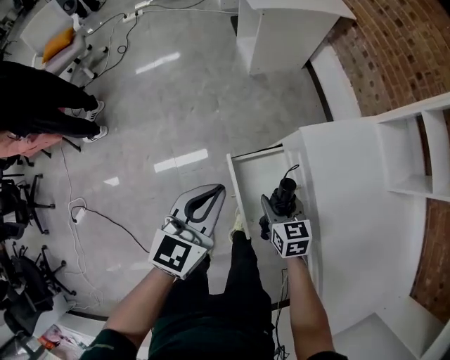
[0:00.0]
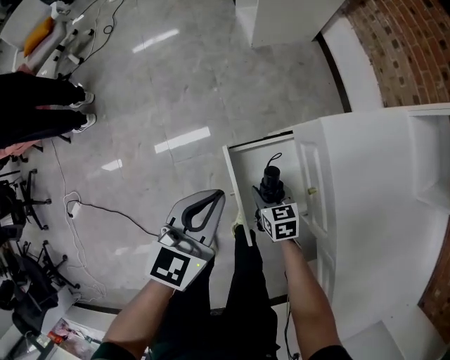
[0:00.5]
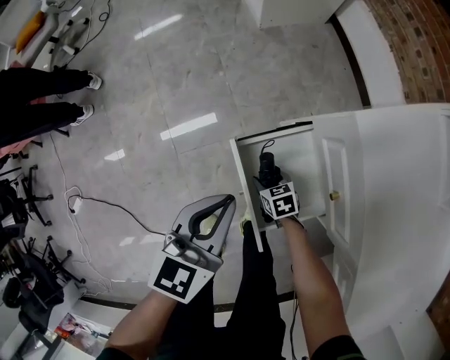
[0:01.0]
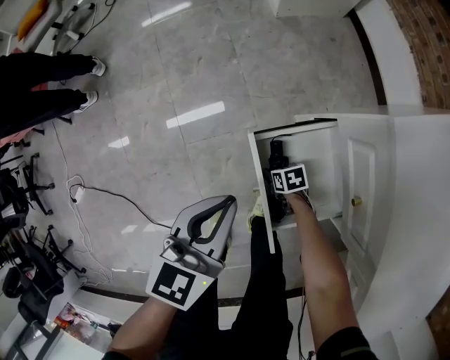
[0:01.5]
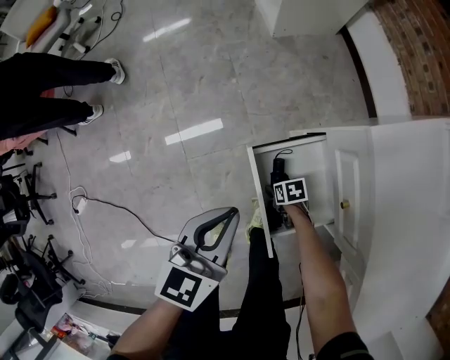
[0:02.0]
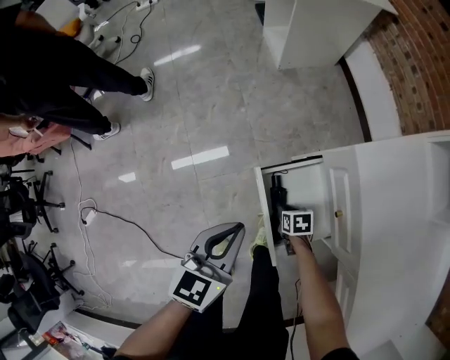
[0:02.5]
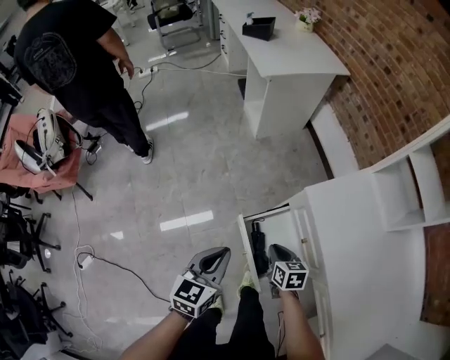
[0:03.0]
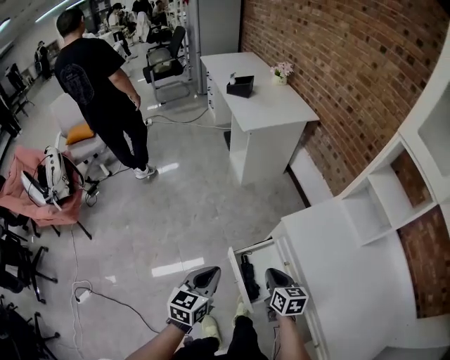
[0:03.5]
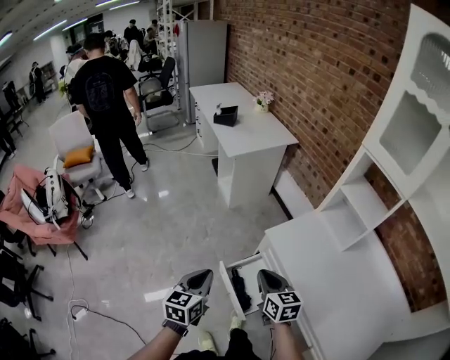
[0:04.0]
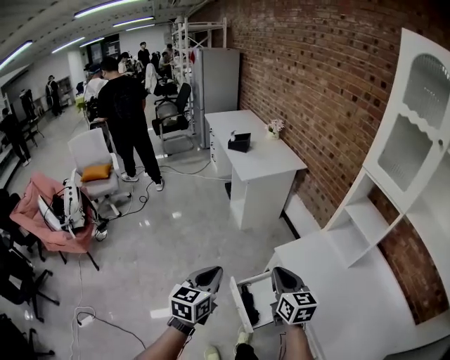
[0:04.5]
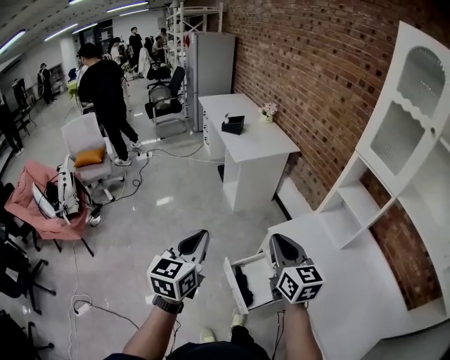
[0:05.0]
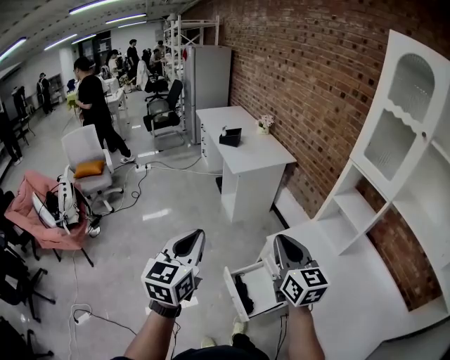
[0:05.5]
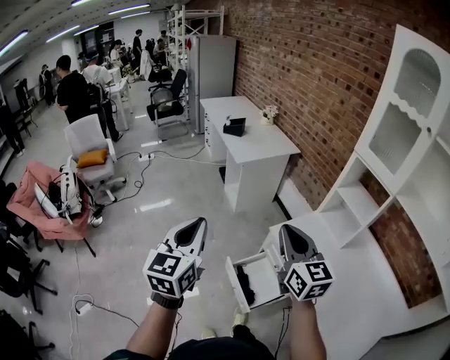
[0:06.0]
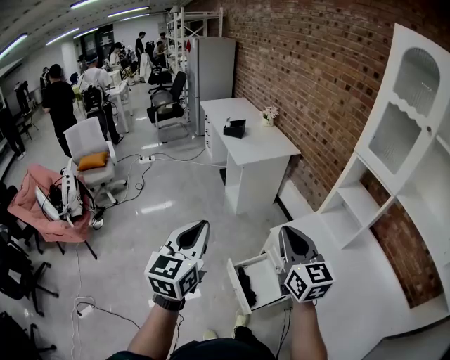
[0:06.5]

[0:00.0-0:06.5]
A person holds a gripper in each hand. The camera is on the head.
0.0 to 2.0 s: The left gripper travels downward by some 20 cm. Meanwhile the right gripper goes approximately 40 cm downward, and rotates approximately 50 degrees.
2.0 to 4.5 s: The right gripper heads upward, covering some 80 cm, points its fingers about 50 degrees further upward, and closes up. The left gripper shifts some 40 cm upward.
4.5 to 6.5 s: The two grippers go some 15 cm upward.

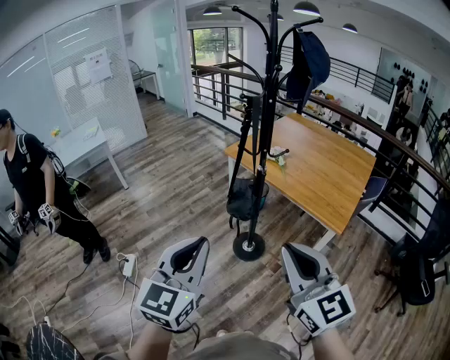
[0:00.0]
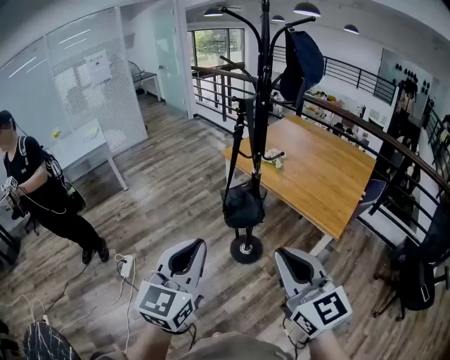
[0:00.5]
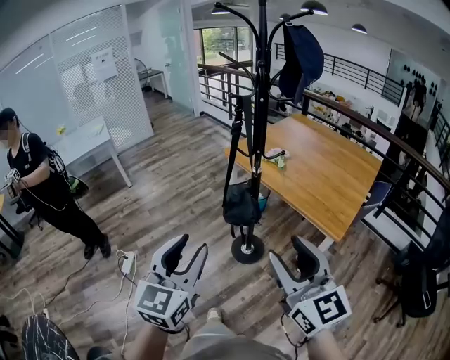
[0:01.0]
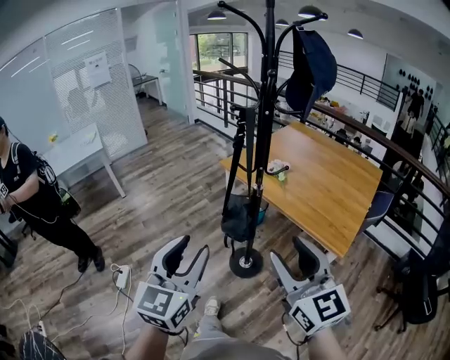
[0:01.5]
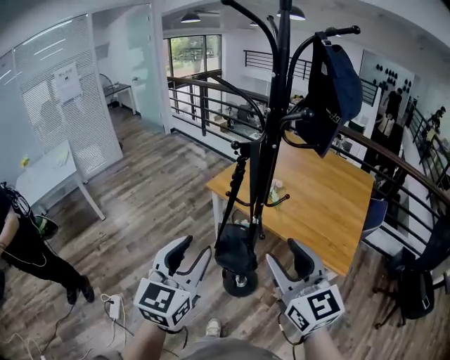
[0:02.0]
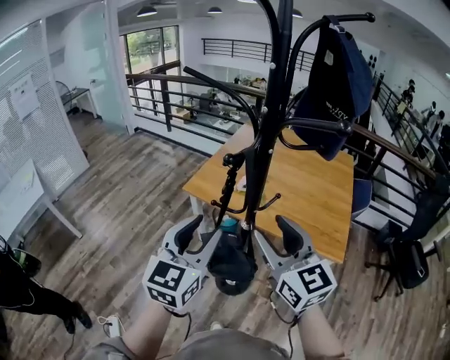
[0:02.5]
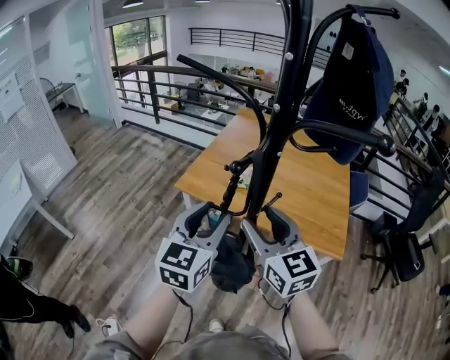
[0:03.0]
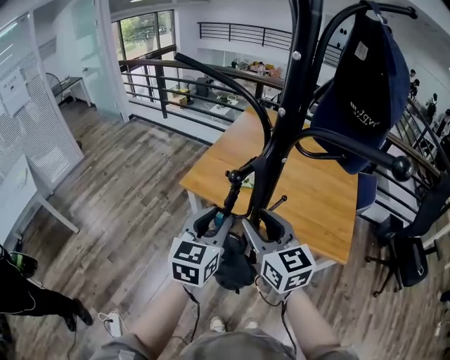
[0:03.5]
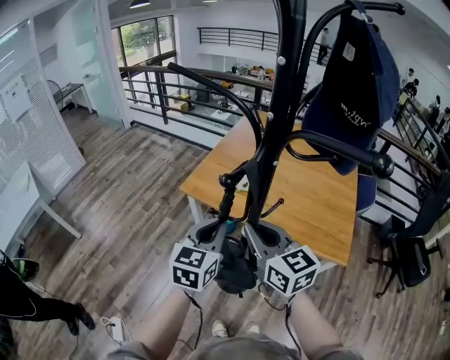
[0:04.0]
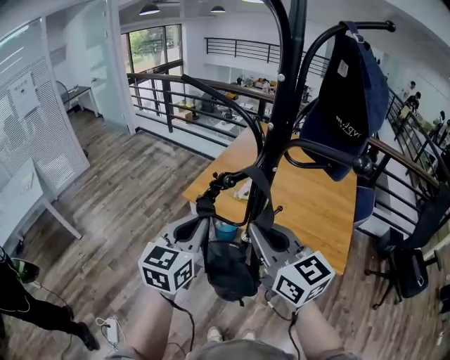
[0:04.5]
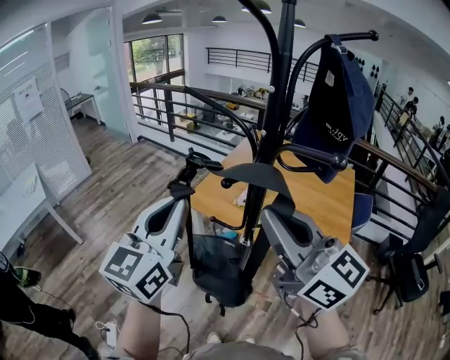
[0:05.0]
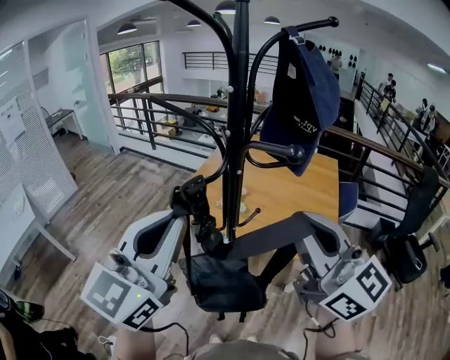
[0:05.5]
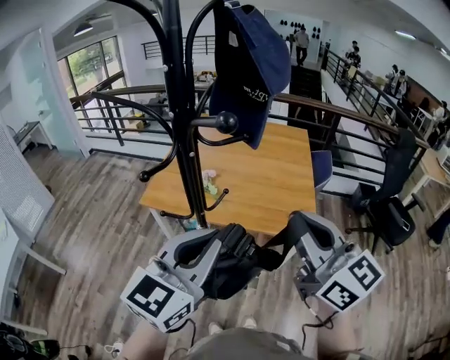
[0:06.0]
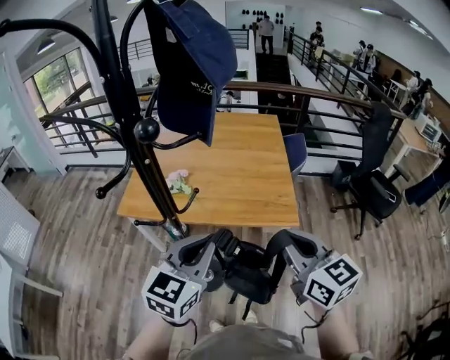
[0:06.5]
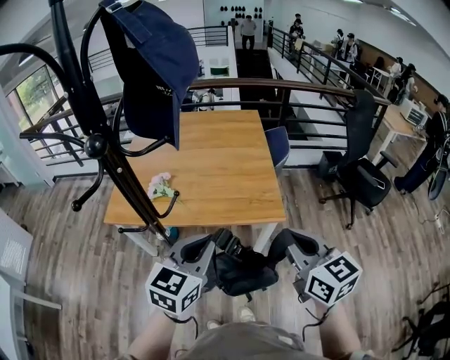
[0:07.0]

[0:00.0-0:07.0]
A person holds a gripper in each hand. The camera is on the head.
0.0 to 2.0 s: Both grippers move forward, approximately 25 cm. The right gripper opens up, while the left gripper opens its fingers.
2.0 to 3.5 s: Both grippers move forward, about 25 cm.
3.5 to 5.0 s: The left gripper goes approximately 20 cm upward, rotates roughly 20 degrees, and closes, while the right gripper moves upward and backward, some 25 cm, turns by about 30 degrees, and closes.
5.0 to 7.0 s: The right gripper ends up about 35 cm from where it was, and rotates roughly 50 degrees, while the left gripper changes place by about 35 cm, and changes its angle by approximately 50 degrees.

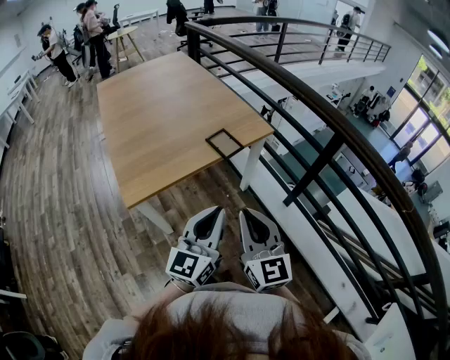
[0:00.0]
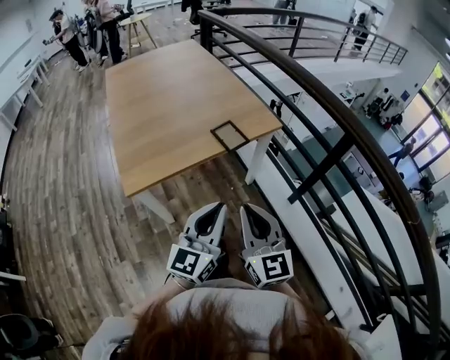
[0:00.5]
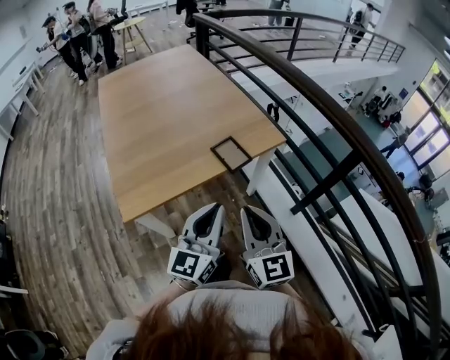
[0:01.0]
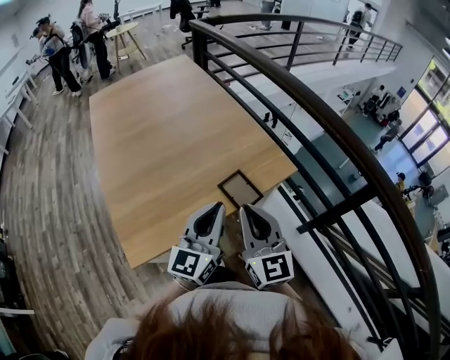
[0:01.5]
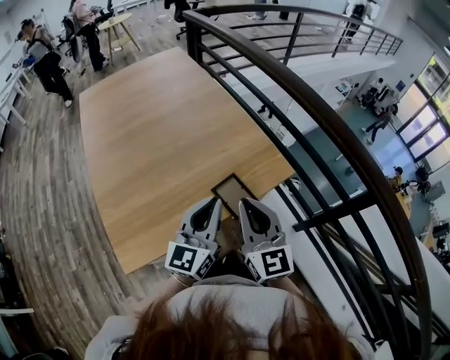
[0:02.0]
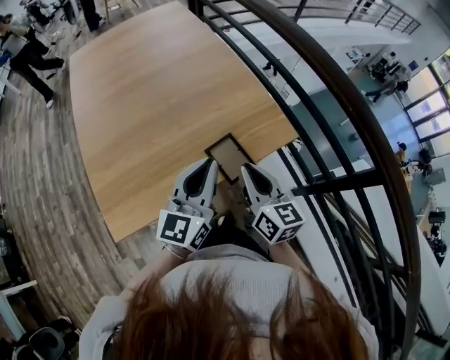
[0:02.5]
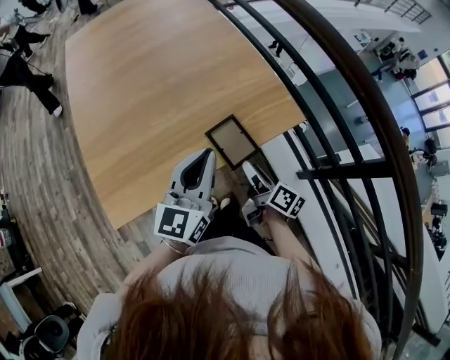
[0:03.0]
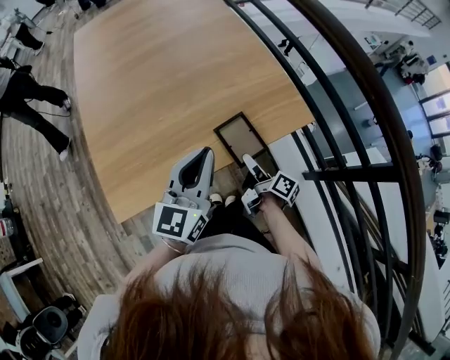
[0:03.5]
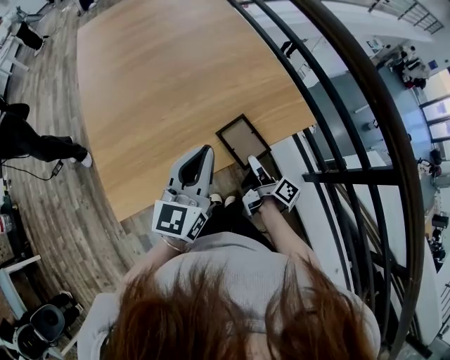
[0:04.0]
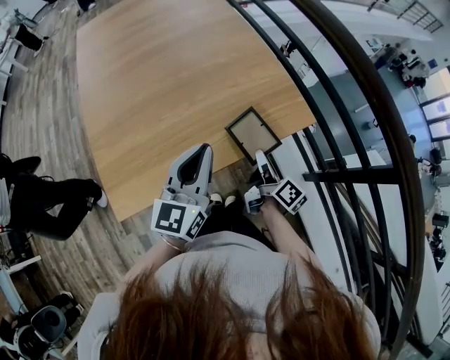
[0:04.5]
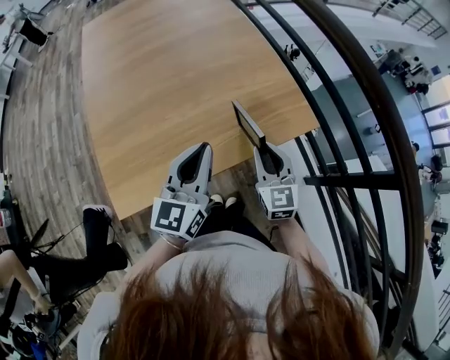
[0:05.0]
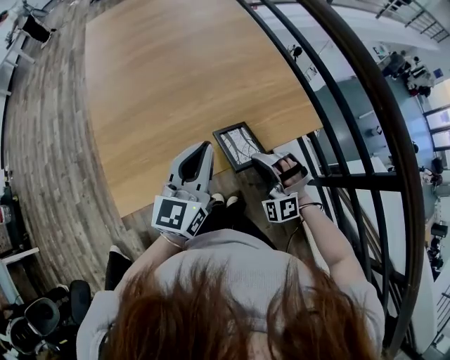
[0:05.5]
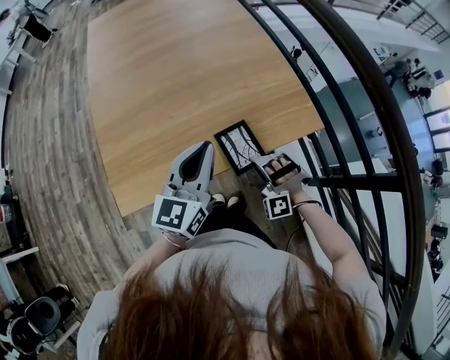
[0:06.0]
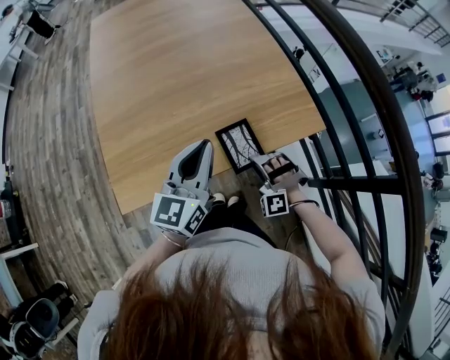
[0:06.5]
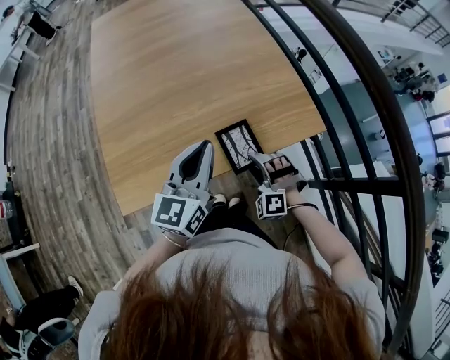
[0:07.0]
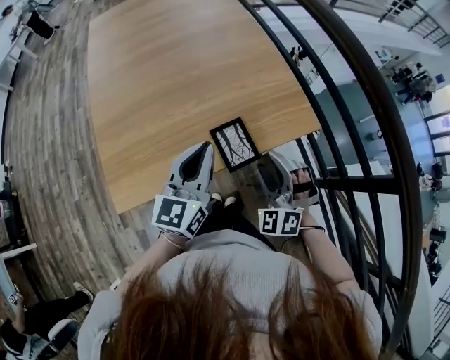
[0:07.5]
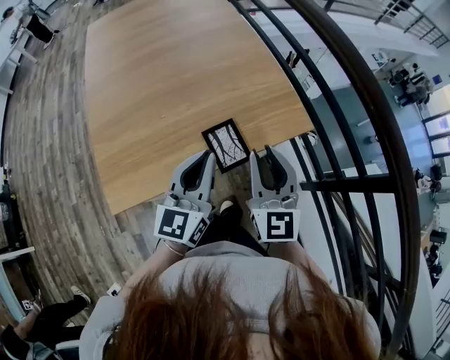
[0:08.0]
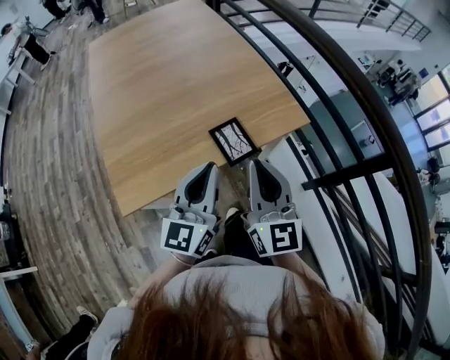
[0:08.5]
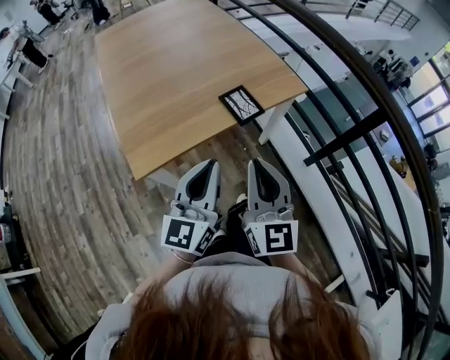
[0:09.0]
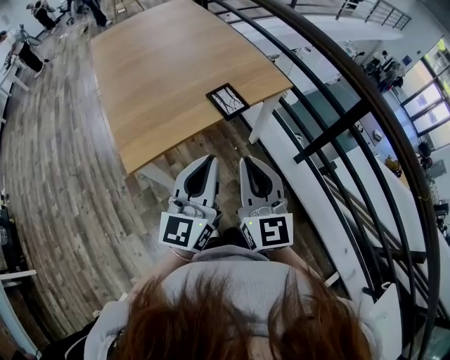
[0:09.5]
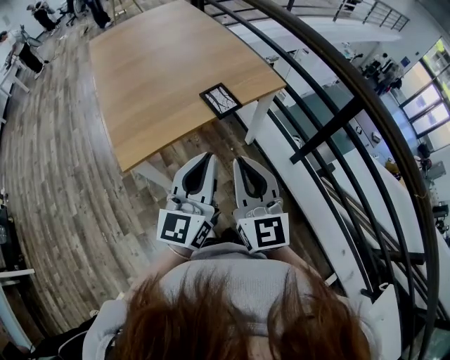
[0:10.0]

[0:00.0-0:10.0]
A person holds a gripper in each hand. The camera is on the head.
0.0 to 2.0 s: Both grippers travel together forward, some 35 cm.
2.0 to 4.0 s: The right gripper moves downward, approximately 25 cm, rotates around the line of its fingers by roughly 90 degrees, clockwise from behind, and opens, then closes once more. Meanwhile the left gripper moves some 5 cm.
4.0 to 6.0 s: The right gripper moves some 10 cm upward and comes back, and changes its angle by some 180 degrees.
6.0 to 8.0 s: The right gripper is displaced upward by some 25 cm, rotates around the line of its fingers by approximately 80 degrees, clockwise from behind, and opens, then closes once more.
8.0 to 10.0 s: The grippers both shift backward by about 30 cm. The right gripper closes up.

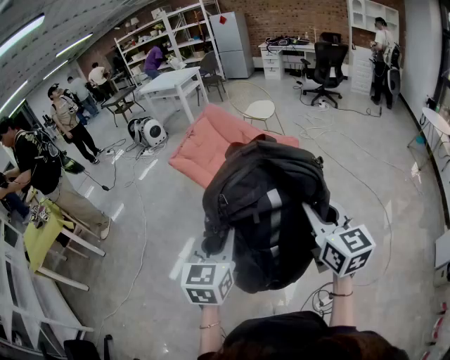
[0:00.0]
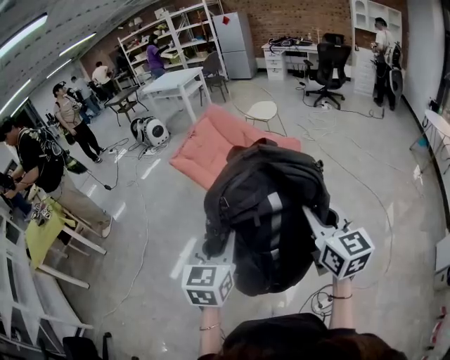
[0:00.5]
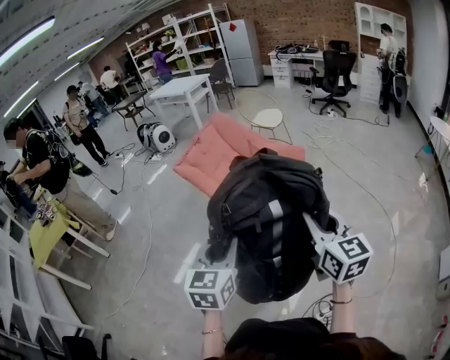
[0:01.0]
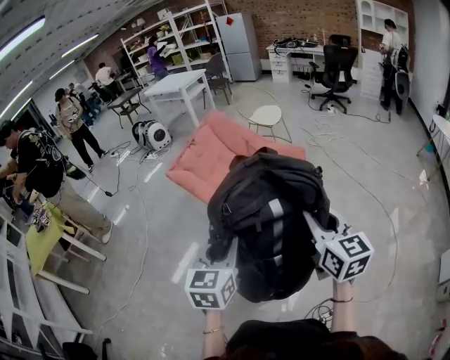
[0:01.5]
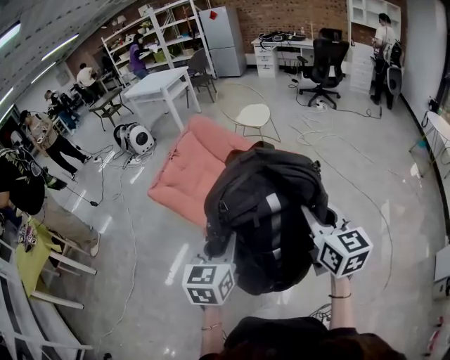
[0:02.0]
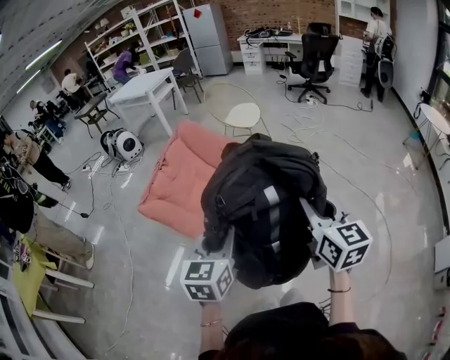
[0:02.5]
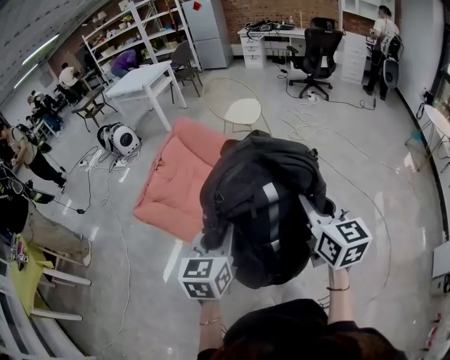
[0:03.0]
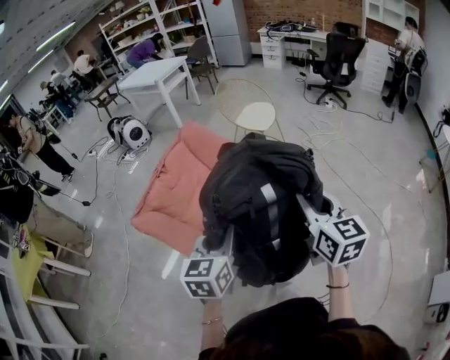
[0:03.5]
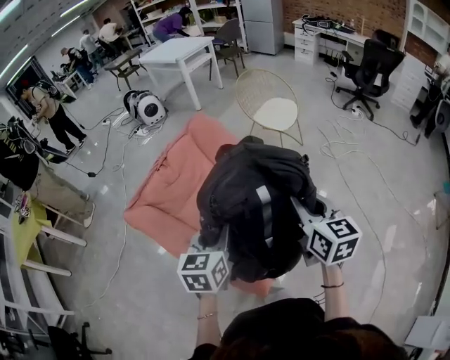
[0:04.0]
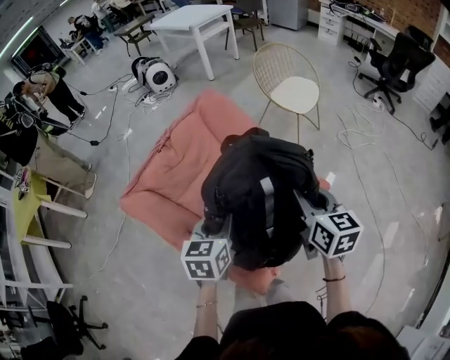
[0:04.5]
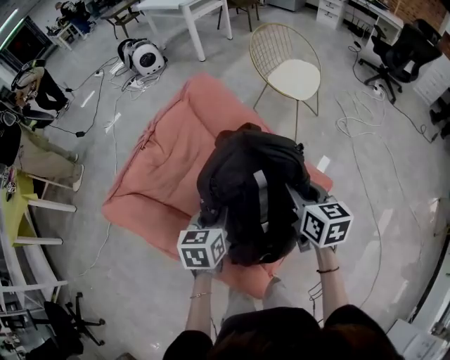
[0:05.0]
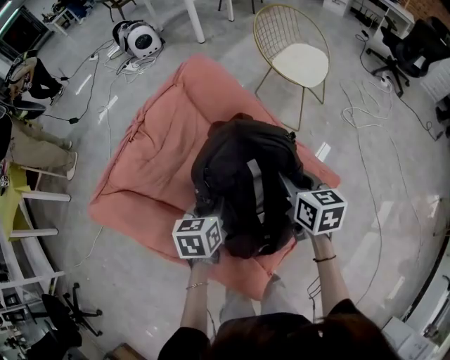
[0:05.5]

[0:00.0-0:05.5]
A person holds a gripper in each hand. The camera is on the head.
0.0 to 2.0 s: Both grippers move forward, approximately 25 cm.
2.0 to 3.5 s: Both grippers travel together forward, approximately 25 cm.
3.5 to 5.5 s: The grippers both shift forward and downward by approximately 40 cm. The right gripper turns by about 30 degrees; the left gripper turns by approximately 30 degrees.
